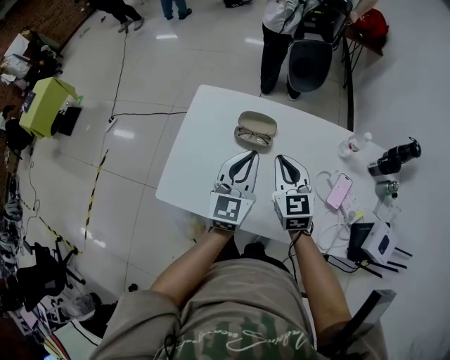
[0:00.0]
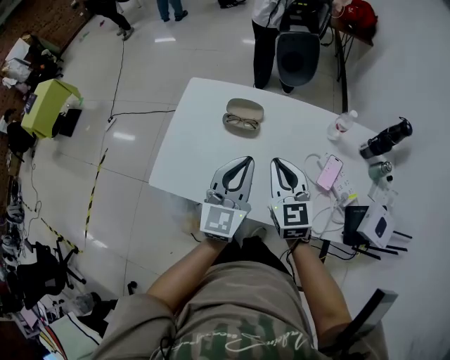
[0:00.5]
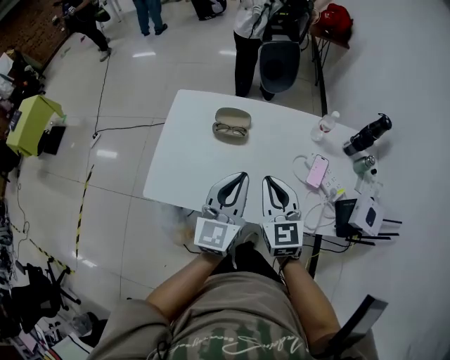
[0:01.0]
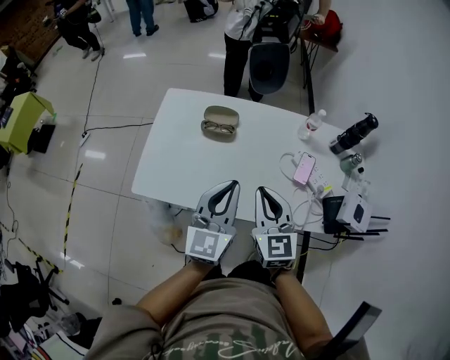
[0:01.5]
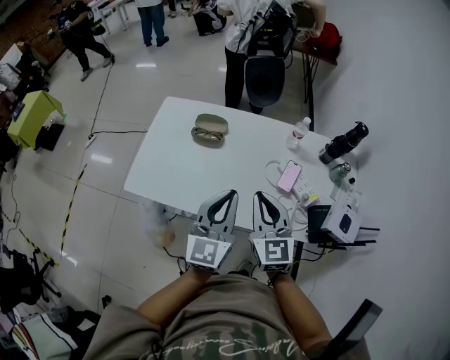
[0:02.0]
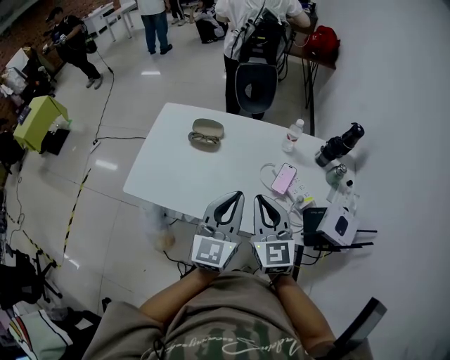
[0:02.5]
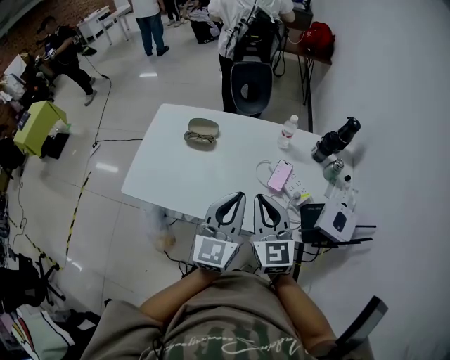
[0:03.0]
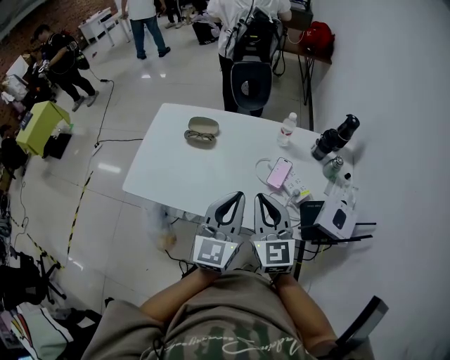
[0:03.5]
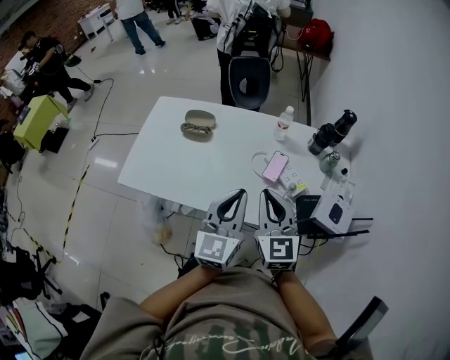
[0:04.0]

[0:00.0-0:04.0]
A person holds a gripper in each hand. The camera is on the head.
0:00.0 to 0:02.0: The left gripper heads backward and to the right, covering some 25 cm; the right gripper moves backward, to the right and upward, some 25 cm.
0:02.0 to 0:04.0: Both grippers travel together to the right, approximately 10 cm.

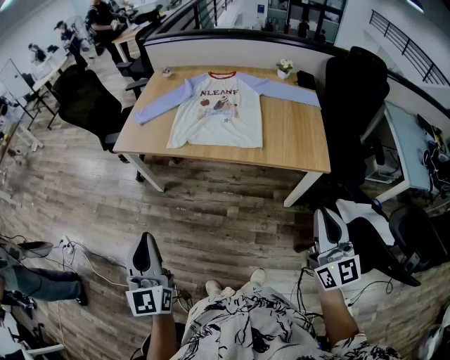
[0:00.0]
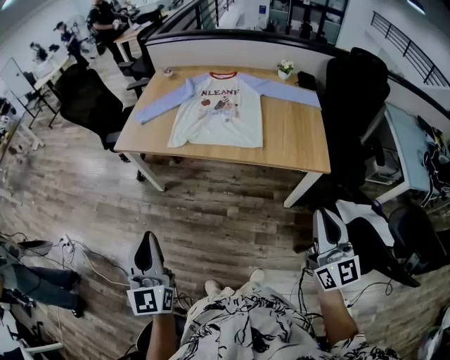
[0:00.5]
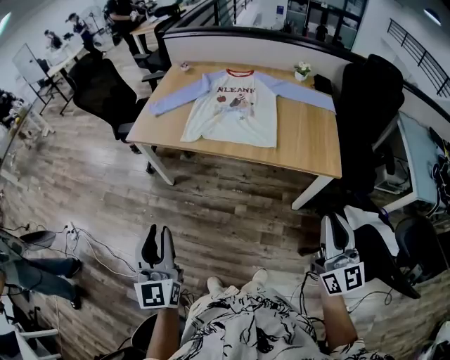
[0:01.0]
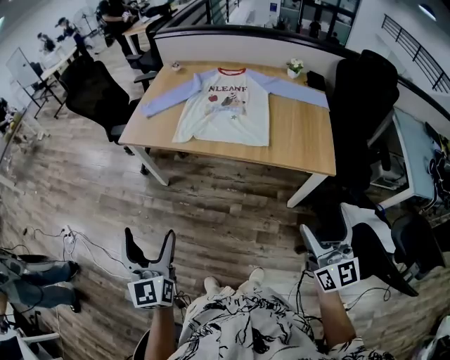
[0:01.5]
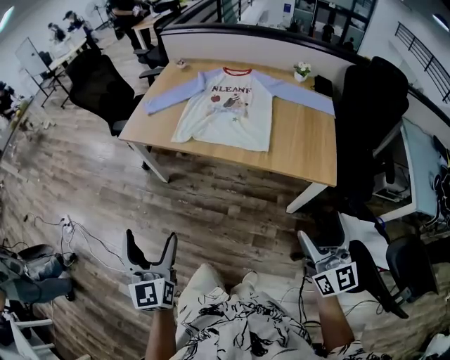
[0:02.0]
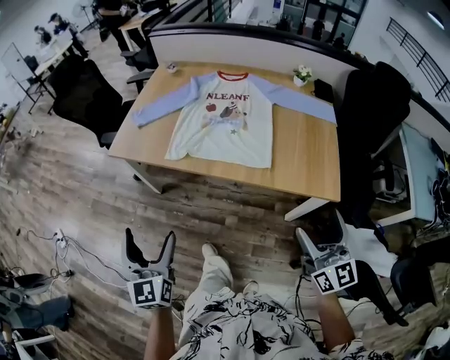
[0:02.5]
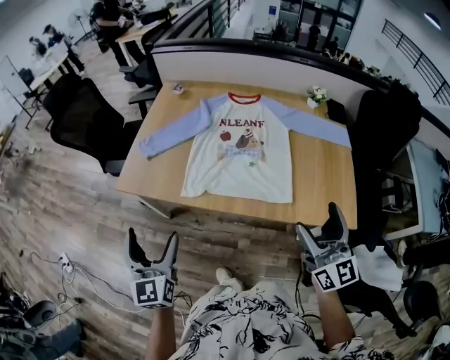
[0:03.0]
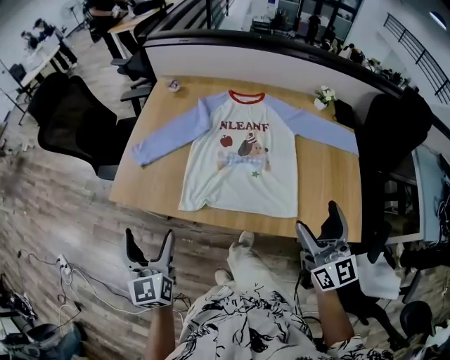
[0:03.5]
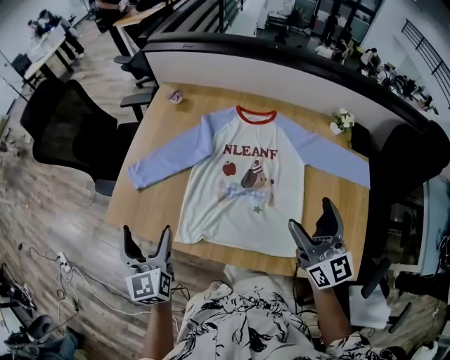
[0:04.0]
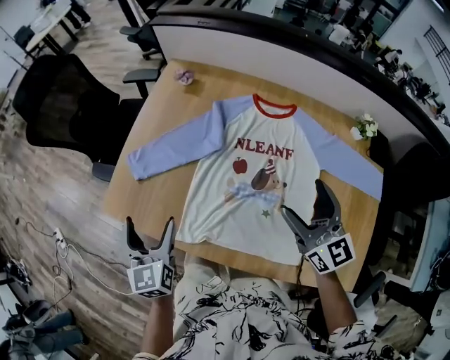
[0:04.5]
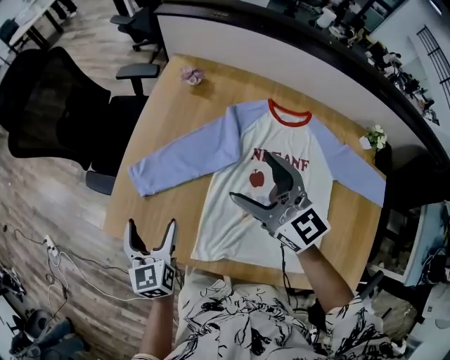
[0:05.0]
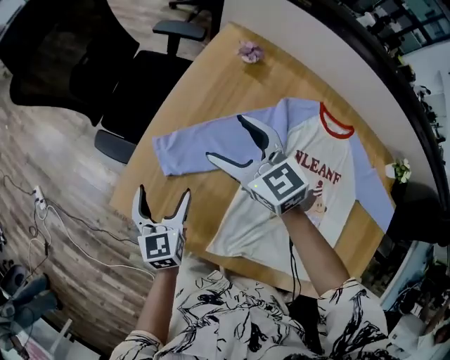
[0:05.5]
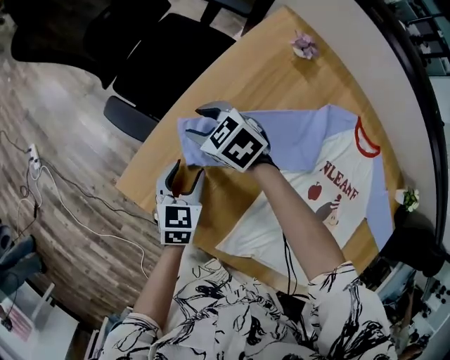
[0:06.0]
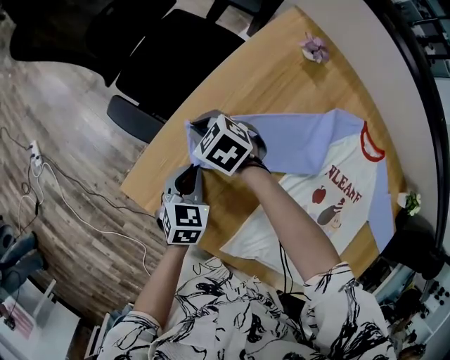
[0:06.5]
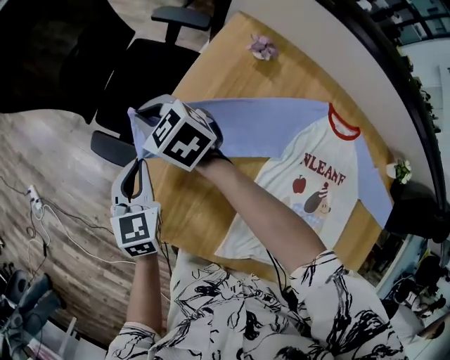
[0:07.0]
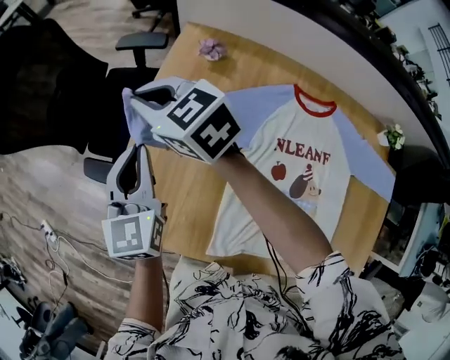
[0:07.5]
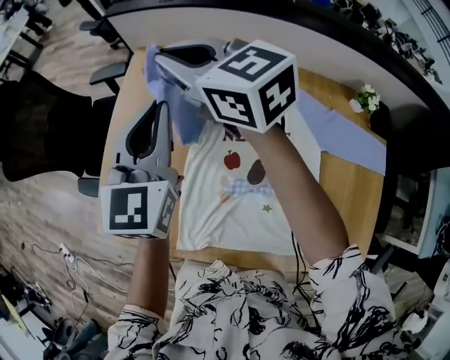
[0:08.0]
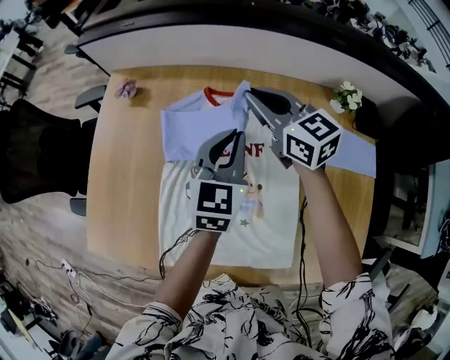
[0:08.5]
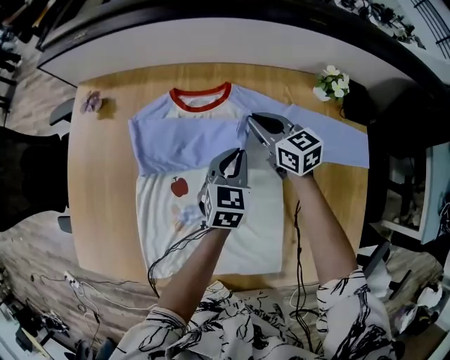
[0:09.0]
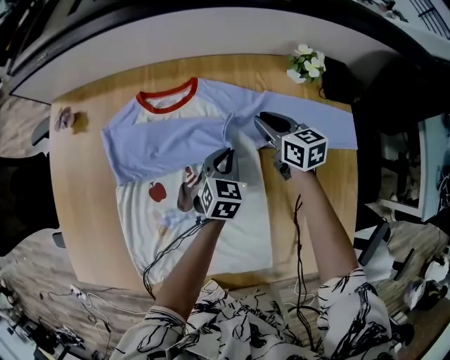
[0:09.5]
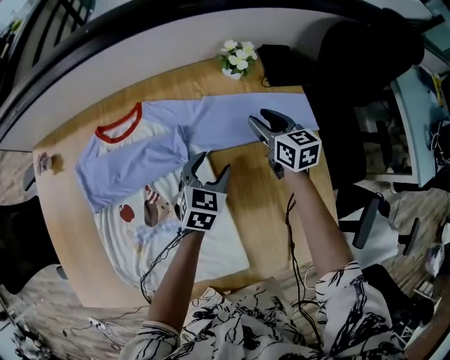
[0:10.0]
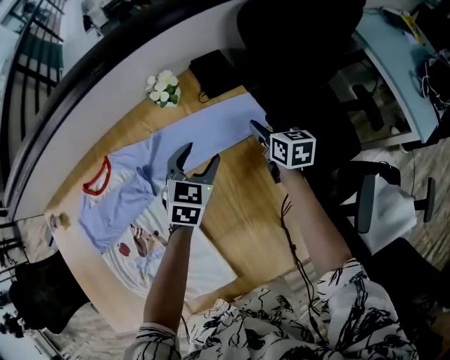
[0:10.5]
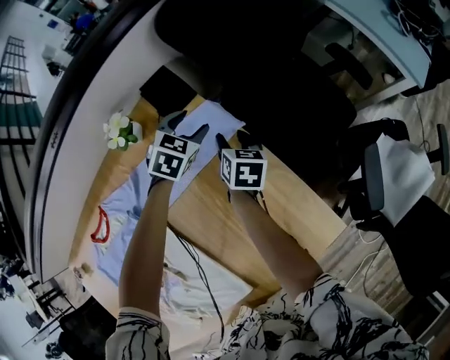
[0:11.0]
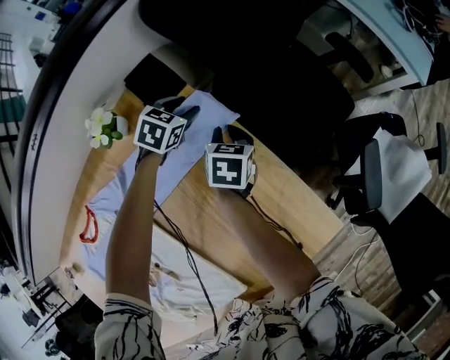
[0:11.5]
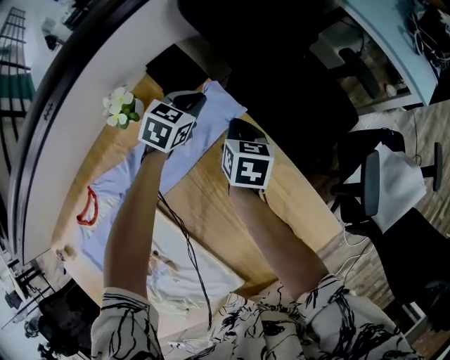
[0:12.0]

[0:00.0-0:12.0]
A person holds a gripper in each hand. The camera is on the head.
0:00.0 to 0:02.0: The right gripper moves approximately 5 cm, and opens its fingers. Meanwhile the left gripper opens up.
0:02.0 to 0:04.0: The two grippers travel together, forward, some 60 cm.
0:04.0 to 0:06.0: The right gripper ends up some 70 cm from where it was, tips its fingers downward by about 50 degrees, and closes its fingers. The left gripper travels downward by some 30 cm, tilts its fingers about 30 degrees downward, and closes.
0:06.0 to 0:08.0: Both grippers move upward, about 35 cm. The right gripper points its fingers roughly 40 degrees further upward, and closes, while the left gripper tips its fingers upward by some 30 degrees, and closes.
0:08.0 to 0:10.0: The two grippers travel together, approximately 60 cm. The left gripper points its fingers roughly 30 degrees further downward, and opens. The right gripper turns by some 60 degrees, and opens.
0:10.0 to 0:12.0: The left gripper moves up and down over roughly 15 cm, changing direction 2 times, swivels approximately 40 degrees, and closes its fingers, while the right gripper ends up approximately 25 cm from where it was, swivels some 50 degrees, and closes.

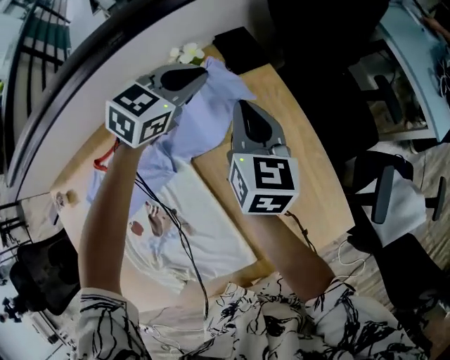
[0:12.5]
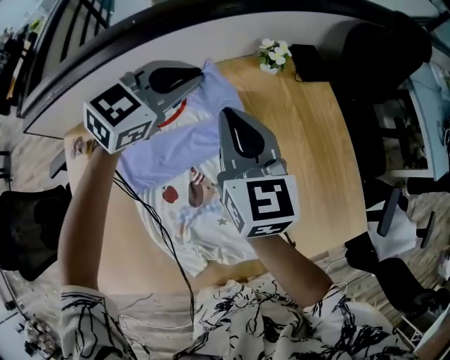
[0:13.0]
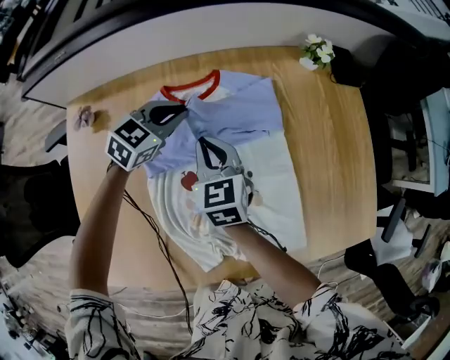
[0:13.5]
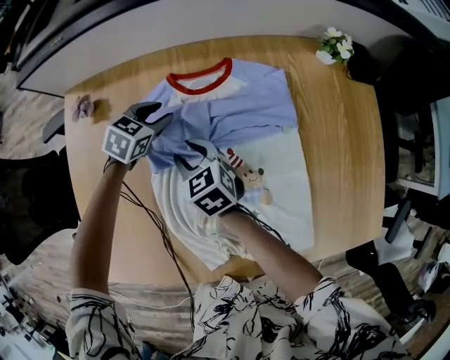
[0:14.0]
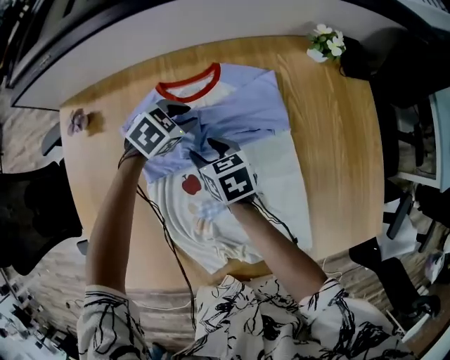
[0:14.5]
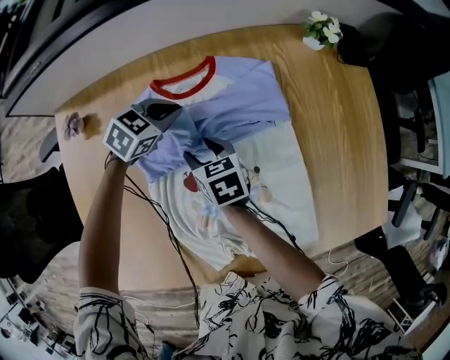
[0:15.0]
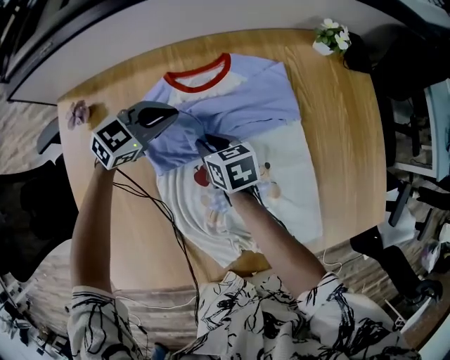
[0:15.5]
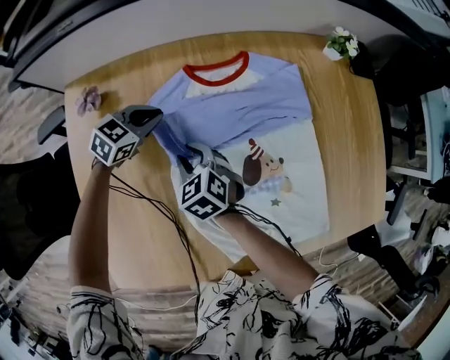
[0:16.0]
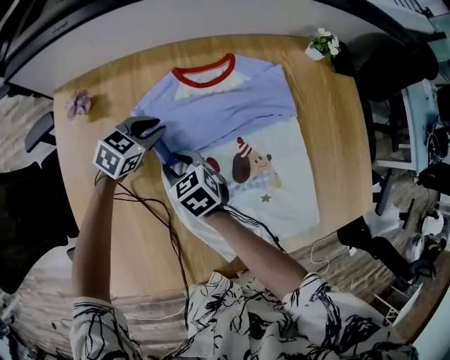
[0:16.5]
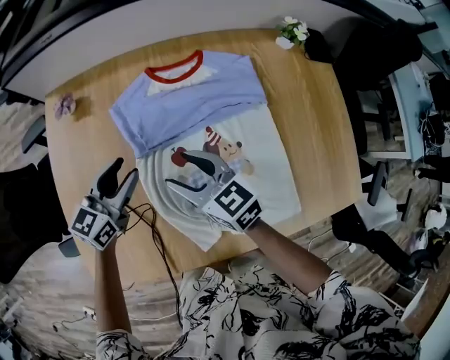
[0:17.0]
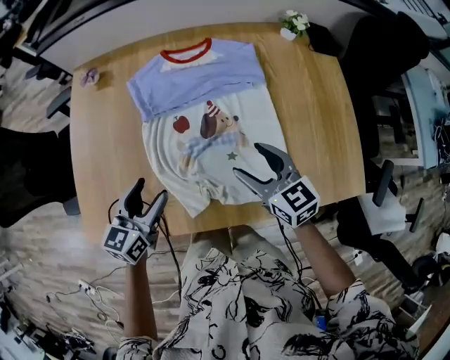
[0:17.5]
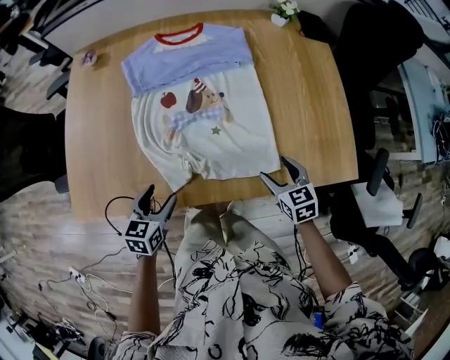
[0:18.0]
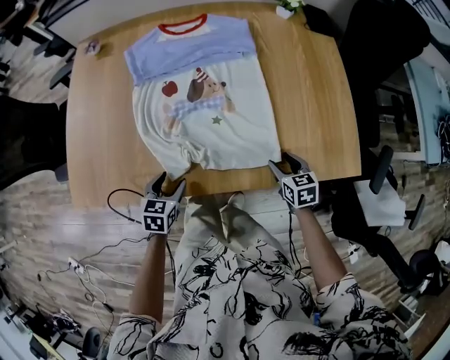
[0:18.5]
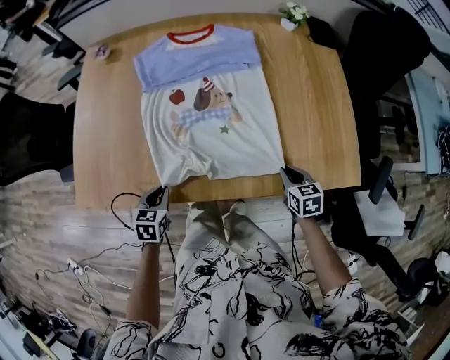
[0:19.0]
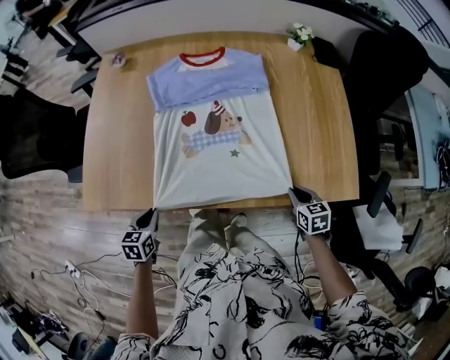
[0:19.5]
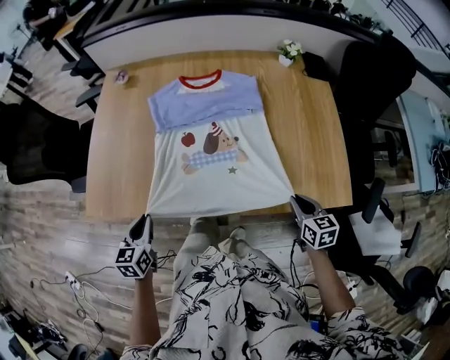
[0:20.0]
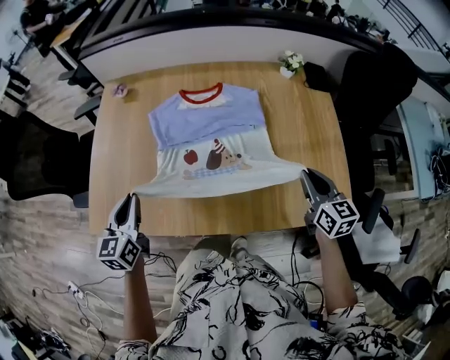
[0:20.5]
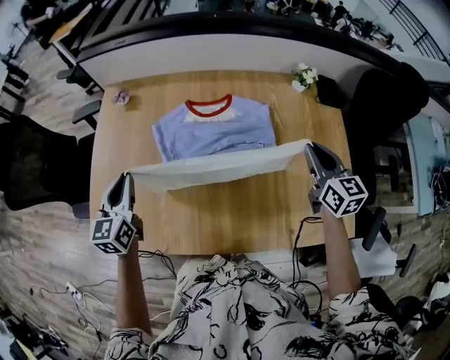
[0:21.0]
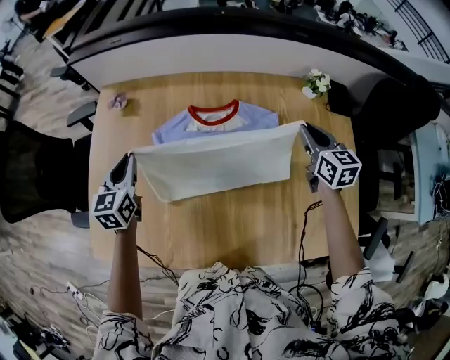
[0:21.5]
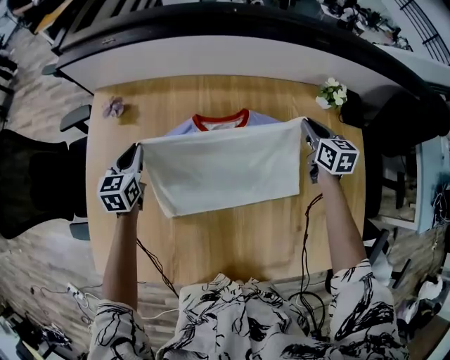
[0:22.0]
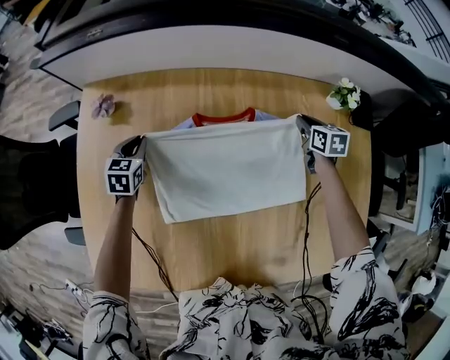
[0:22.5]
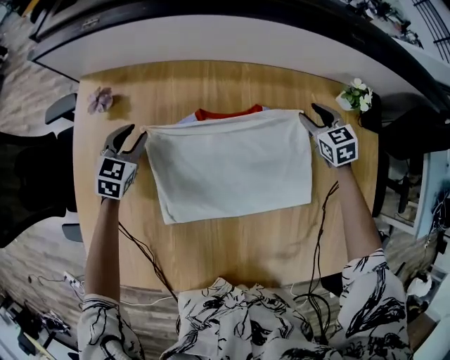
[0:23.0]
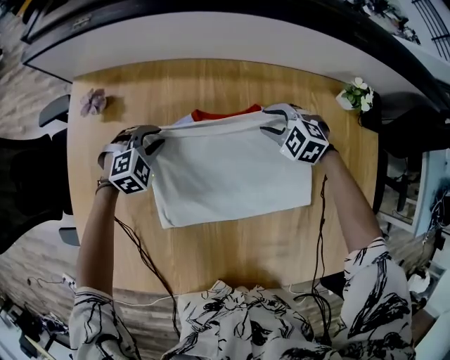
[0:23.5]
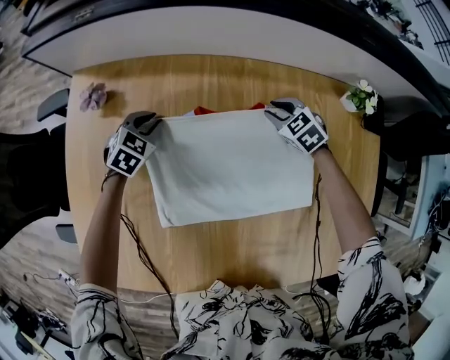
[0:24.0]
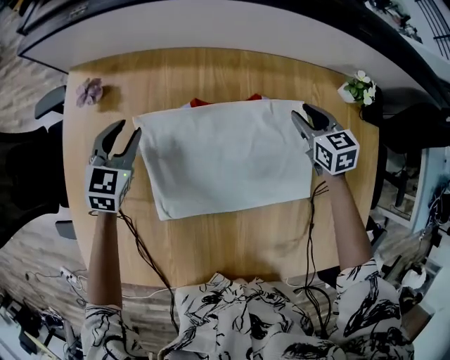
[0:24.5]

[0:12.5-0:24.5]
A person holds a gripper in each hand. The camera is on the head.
0:12.5 to 0:14.5: The two grippers travel together, roughly 50 cm. The left gripper changes its angle by approximately 30 degrees. Meanwhile the right gripper rotates roughly 60 degrees, and opens its fingers.
0:14.5 to 0:16.5: The grippers both shift to the left and backward by some 15 cm. The right gripper changes its angle by about 20 degrees.
0:16.5 to 0:18.5: The left gripper moves backward, roughly 40 cm, and rotates roughly 40 degrees, while the right gripper shifts about 60 cm to the right and backward.
0:18.5 to 0:20.5: The left gripper shifts approximately 25 cm upward and to the left, changes its angle by about 30 degrees, and closes up, while the right gripper moves upward, some 25 cm, rotates some 30 degrees, and closes its fingers.
0:20.5 to 0:22.5: Both grippers are carried forward, approximately 40 cm. The two grippers go approximately 20 cm downward. The right gripper rotates about 20 degrees, while the left gripper rotates roughly 30 degrees.
0:22.5 to 0:24.5: The left gripper is displaced upward by roughly 5 cm, while the right gripper heads to the left, covering approximately 5 cm, and rotates roughly 20 degrees.
